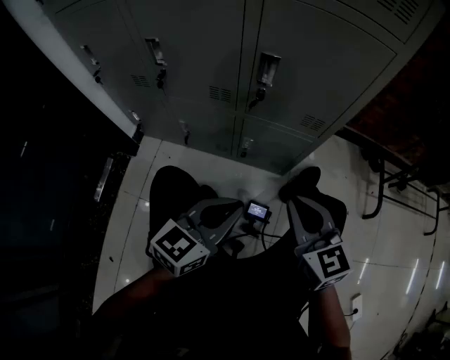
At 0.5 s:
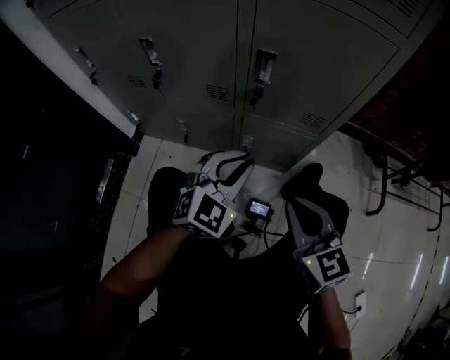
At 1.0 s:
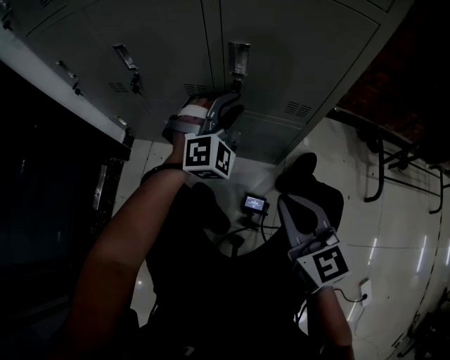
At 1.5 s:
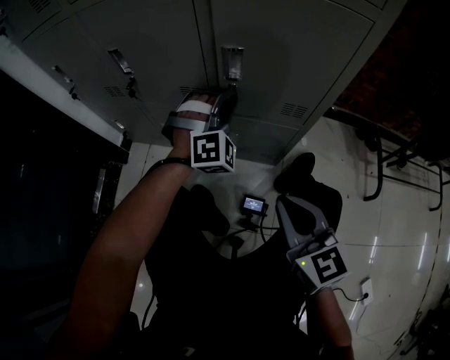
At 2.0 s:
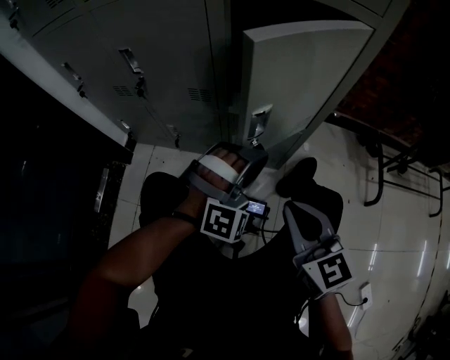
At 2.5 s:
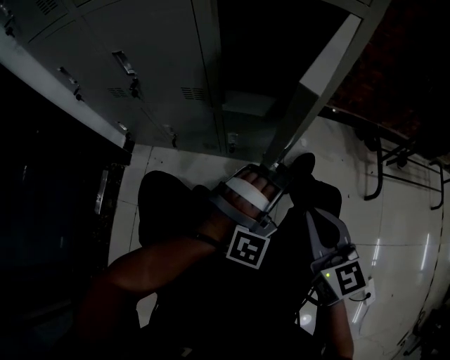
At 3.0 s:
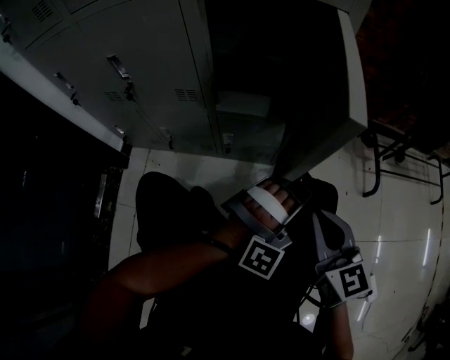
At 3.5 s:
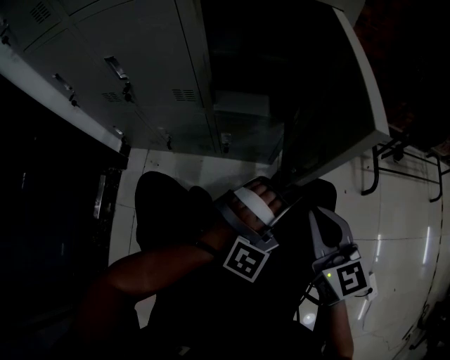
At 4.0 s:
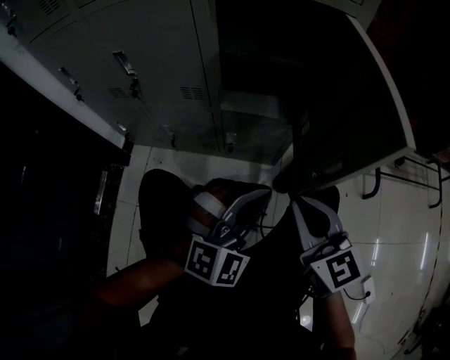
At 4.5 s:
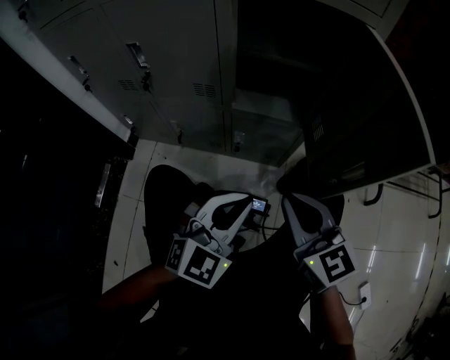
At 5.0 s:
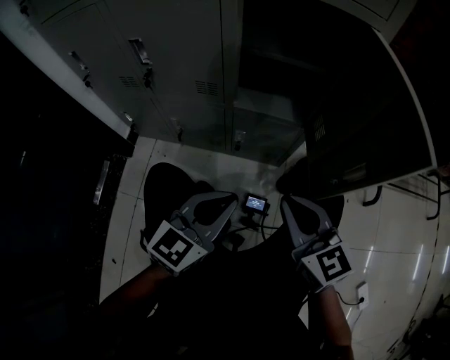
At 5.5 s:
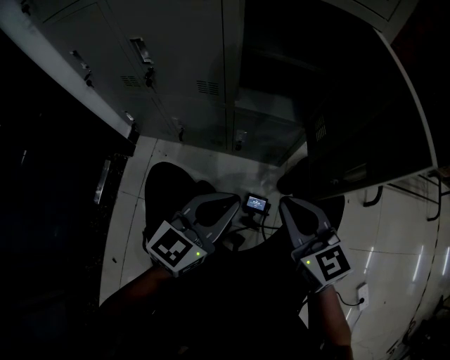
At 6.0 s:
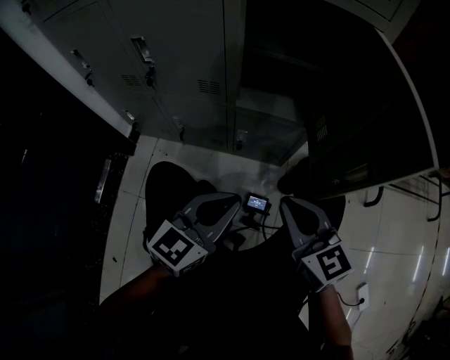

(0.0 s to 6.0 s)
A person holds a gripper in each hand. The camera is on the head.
0.0 s - 2.0 s: The left gripper shifts some 15 cm forward and to the right, and rotates around the line of its fingers by approximately 90 degrees, clockwise from behind.
2.0 s - 4.0 s: The right gripper reaches approximately 10 cm to the right, then returns. Meanwhile the left gripper travels backward by roughly 10 cm, reaches some 15 cm to the right, then returns, and swivels some 20 degrees.
4.0 s - 6.0 s: The right gripper shifts by roughly 5 cm. The left gripper is displaced to the left by about 10 cm, and twists approximately 60 degrees counterclockwise, seen from behind.

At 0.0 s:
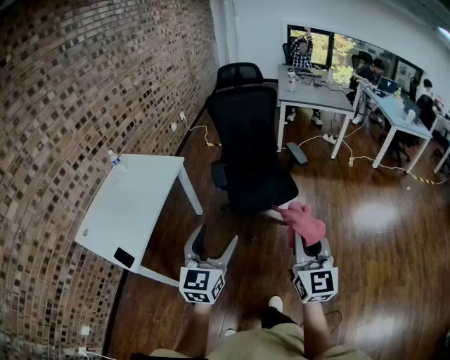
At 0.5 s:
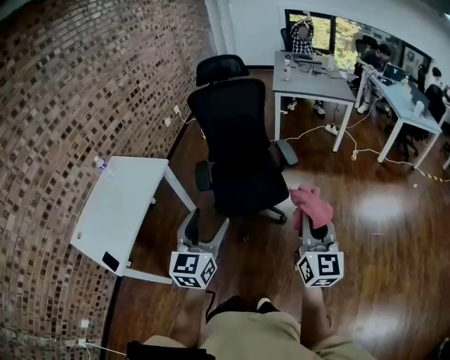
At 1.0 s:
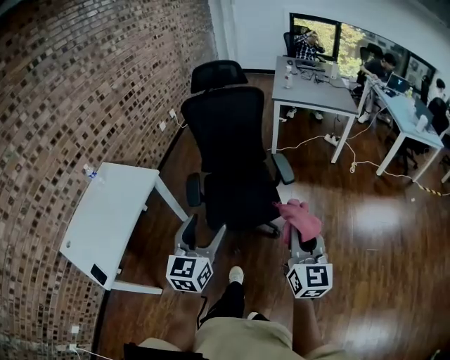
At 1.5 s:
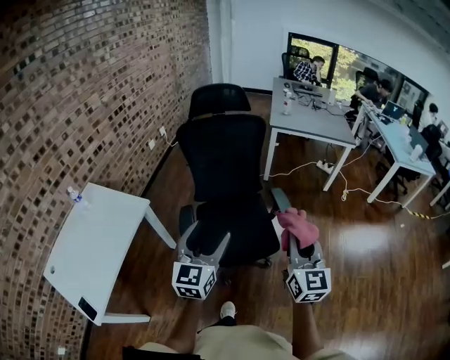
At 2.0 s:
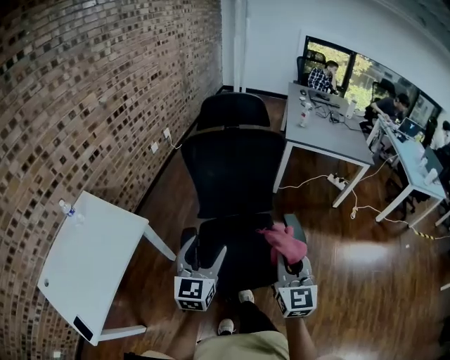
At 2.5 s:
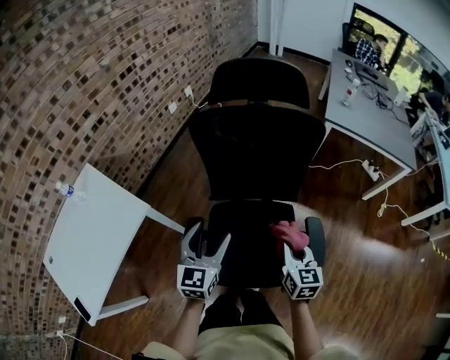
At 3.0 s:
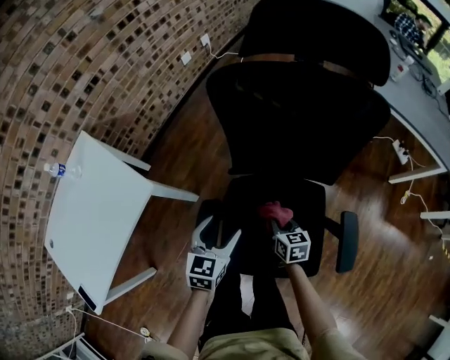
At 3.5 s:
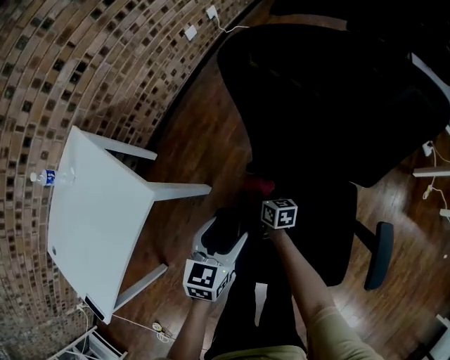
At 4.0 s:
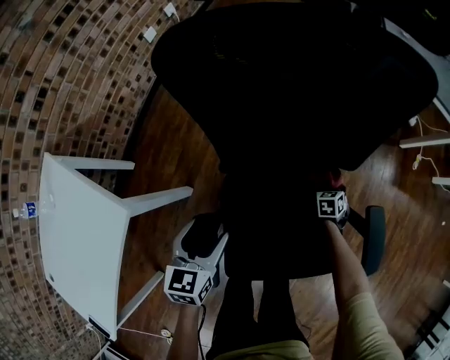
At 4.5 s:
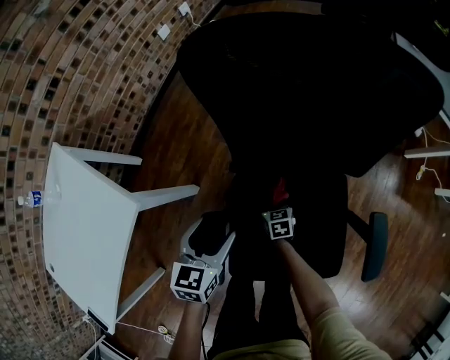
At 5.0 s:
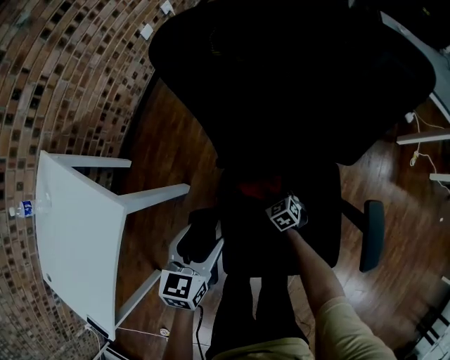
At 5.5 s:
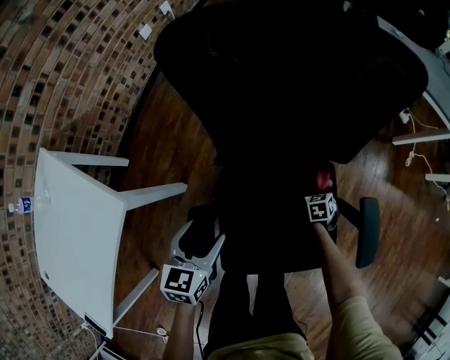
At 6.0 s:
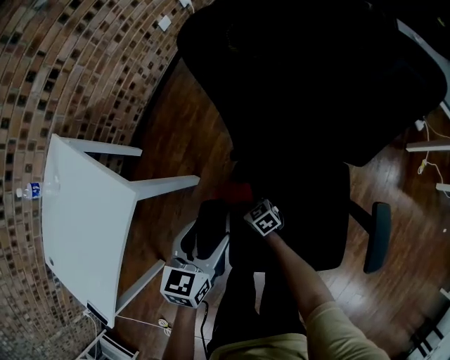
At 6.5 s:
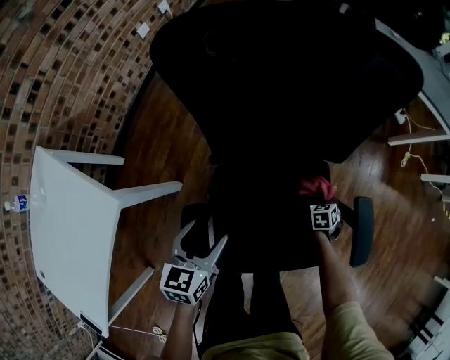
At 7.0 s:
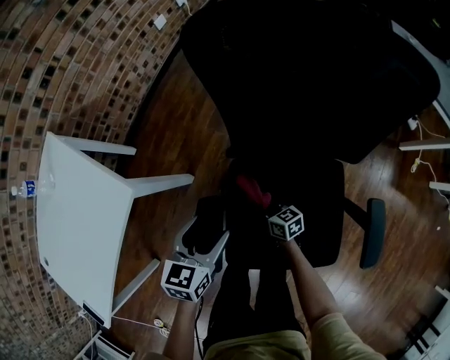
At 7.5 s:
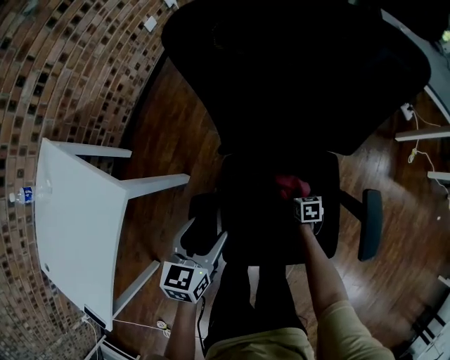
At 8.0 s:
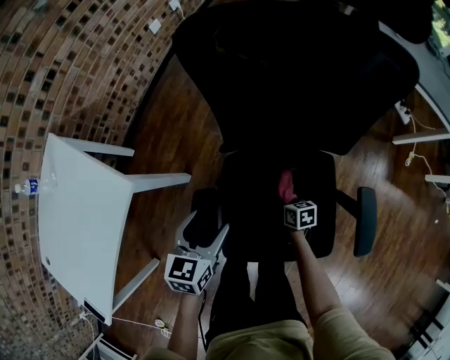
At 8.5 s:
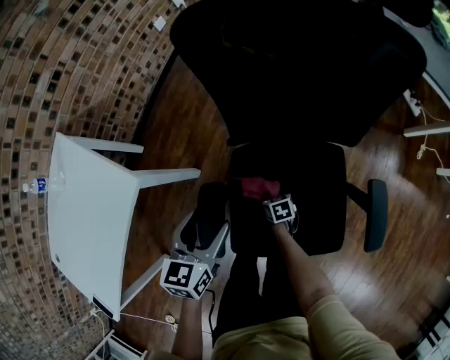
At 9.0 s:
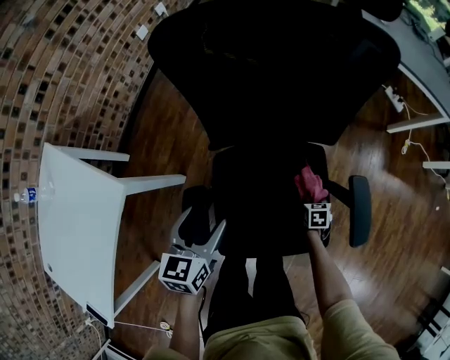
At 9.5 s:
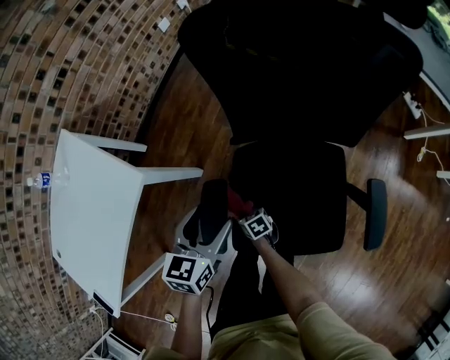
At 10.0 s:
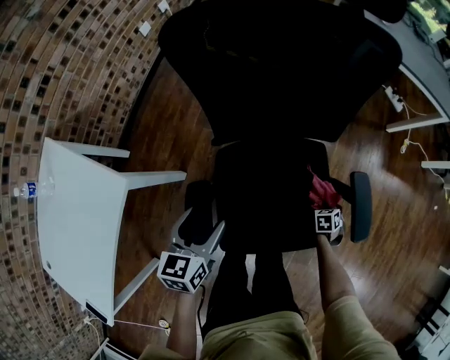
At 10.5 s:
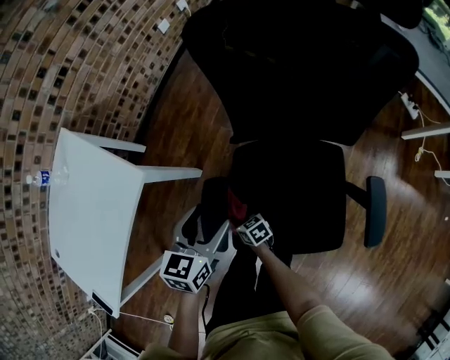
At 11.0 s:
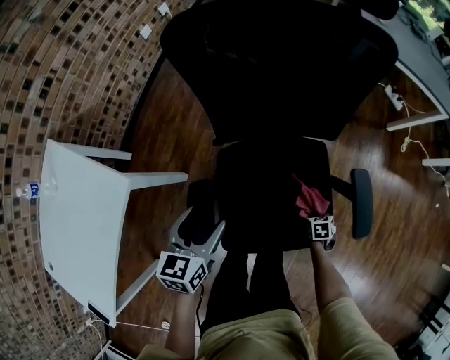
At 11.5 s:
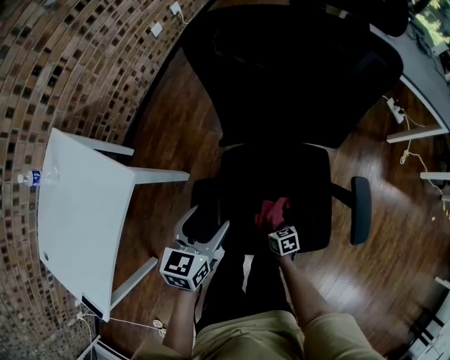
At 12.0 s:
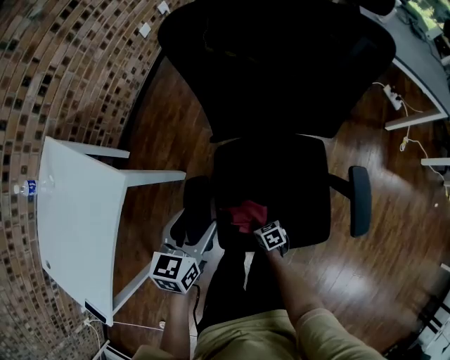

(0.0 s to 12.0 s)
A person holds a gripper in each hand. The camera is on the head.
0.0 s - 2.0 s: The pair of grippers is taken forward, approximately 50 cm.
2.0 s - 4.0 s: The right gripper moves downward, about 60 cm, and angles its fingers downward, by roughly 60 degrees; the left gripper shifts about 35 cm downward, and angles its fingers downward, by about 30 degrees.
4.0 s - 6.0 s: The right gripper shifts by some 40 cm, and turns by about 60 degrees.
6.0 s - 8.0 s: The right gripper moves up and down over roughly 5 cm, changing direction 2 times, and swivels some 40 degrees.
8.0 s - 10.0 s: The right gripper shifts by approximately 25 cm, and swivels approximately 50 degrees.
10.0 s - 12.0 s: The right gripper ends up approximately 30 cm from where it was, and swivels approximately 40 degrees.

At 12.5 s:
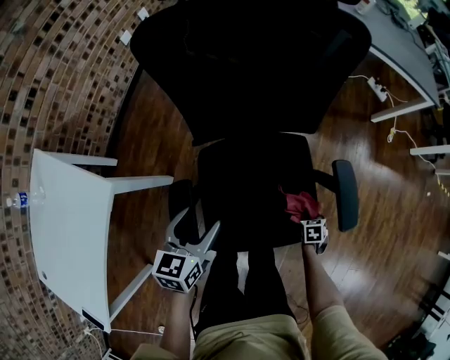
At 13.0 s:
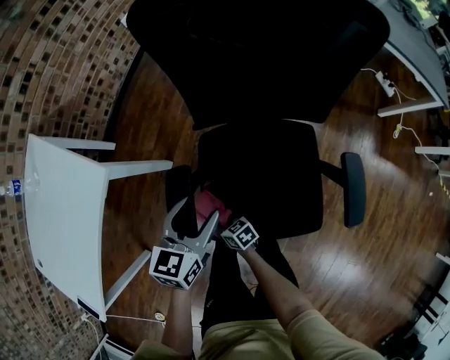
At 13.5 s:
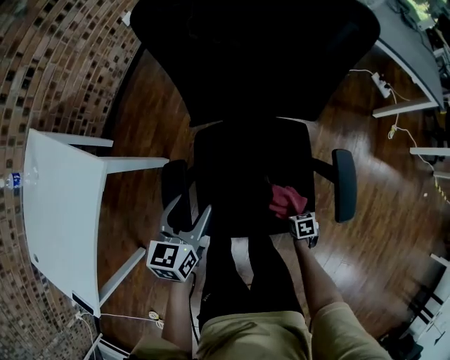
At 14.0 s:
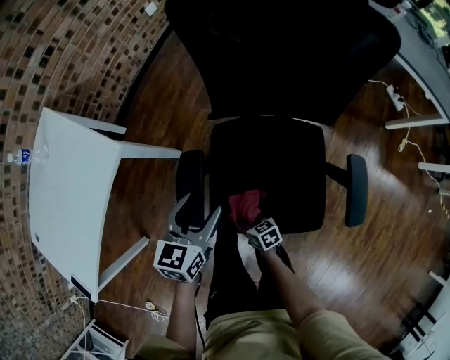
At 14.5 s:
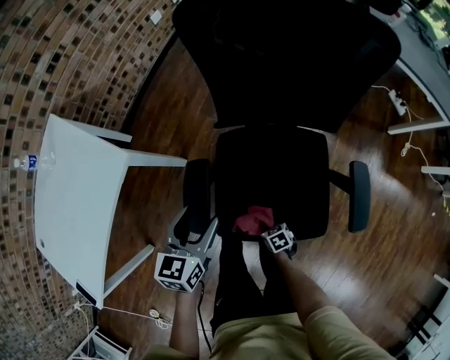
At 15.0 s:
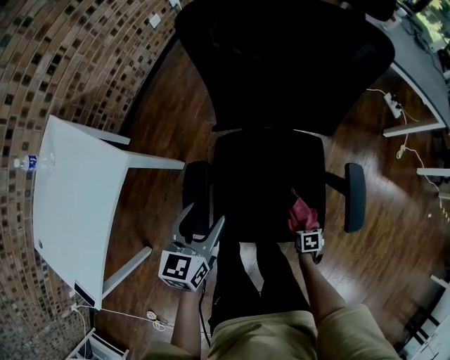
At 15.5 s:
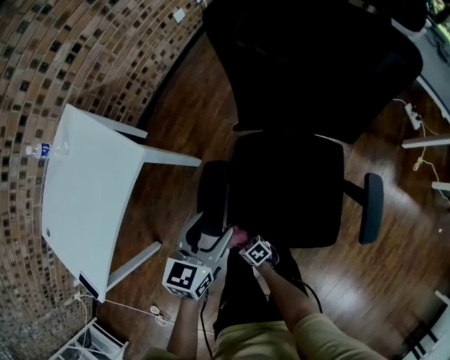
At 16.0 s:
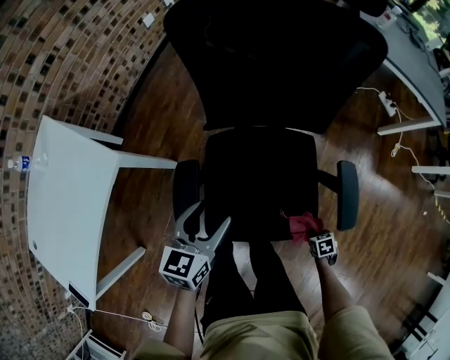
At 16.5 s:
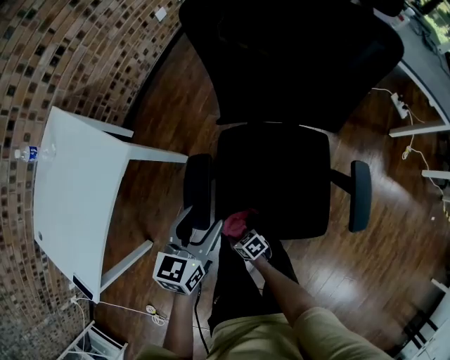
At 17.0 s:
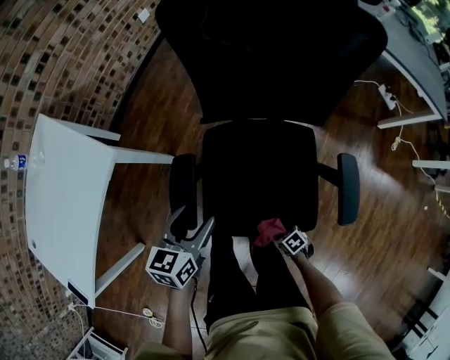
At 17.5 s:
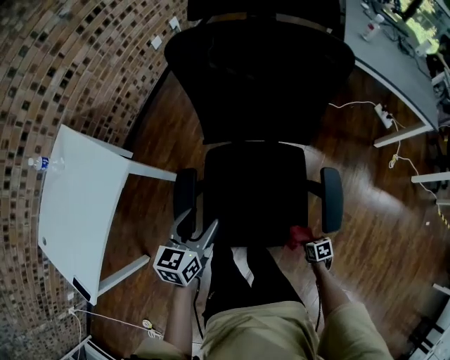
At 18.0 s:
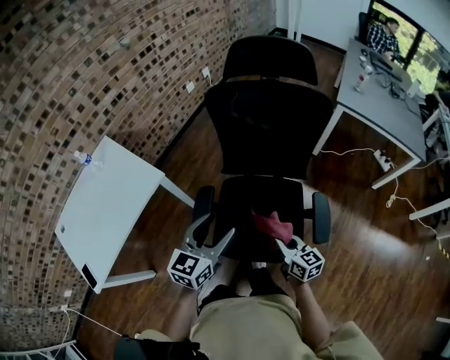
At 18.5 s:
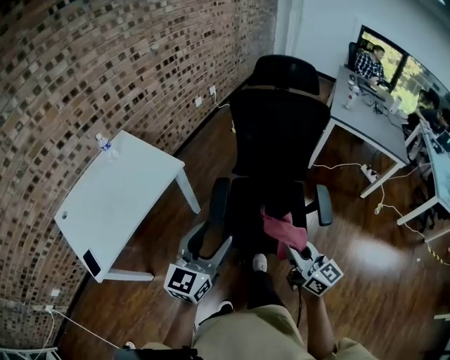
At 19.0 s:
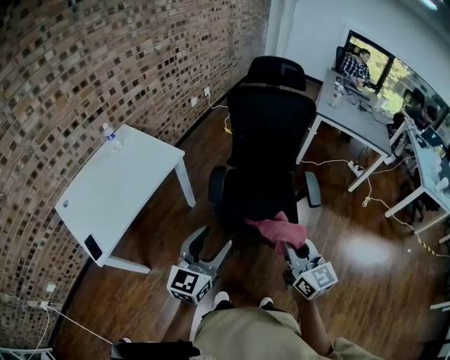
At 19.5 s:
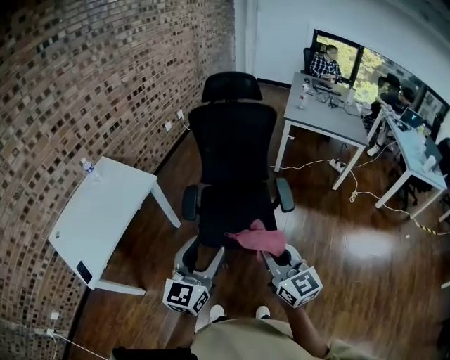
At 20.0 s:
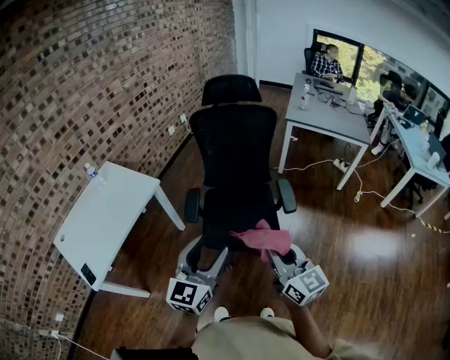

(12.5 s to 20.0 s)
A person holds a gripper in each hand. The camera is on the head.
12.5 s - 14.5 s: The left gripper moves roughly 5 cm. The right gripper changes its angle by about 30 degrees.
14.5 s - 16.5 s: The right gripper changes its angle by roughly 30 degrees.
16.5 s - 18.0 s: The right gripper moves upward, approximately 35 cm, and changes its angle by approximately 50 degrees, while the left gripper is displaced upward by roughly 20 cm.
18.0 s - 20.0 s: Both grippers travel together backward and upward, about 35 cm. The right gripper changes its angle by approximately 30 degrees.

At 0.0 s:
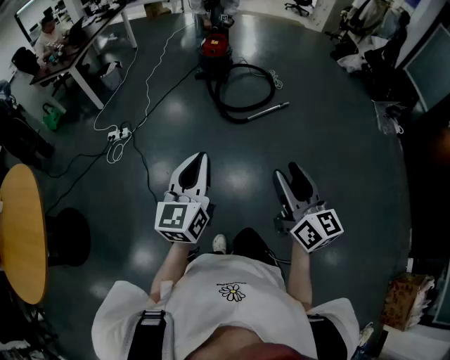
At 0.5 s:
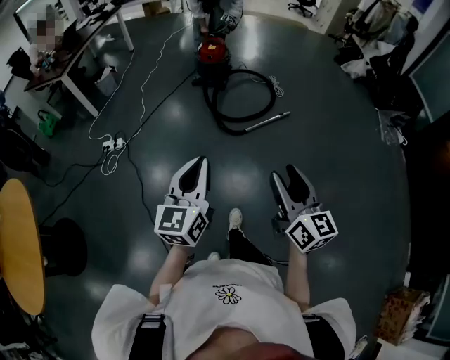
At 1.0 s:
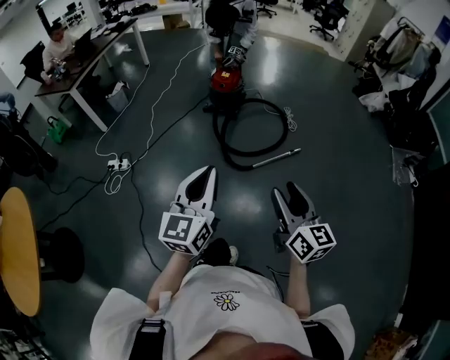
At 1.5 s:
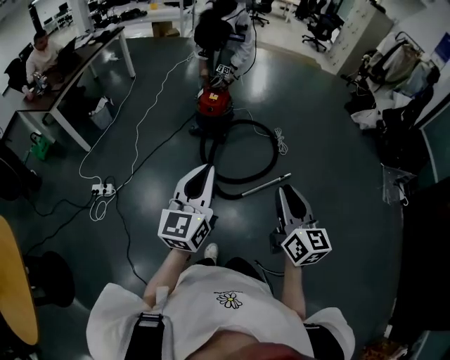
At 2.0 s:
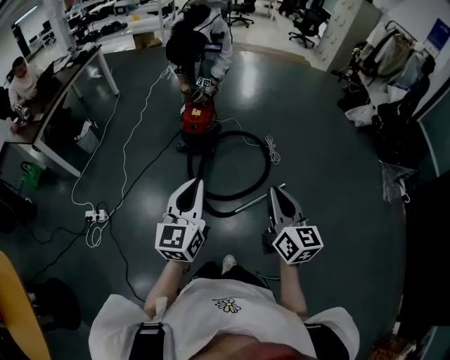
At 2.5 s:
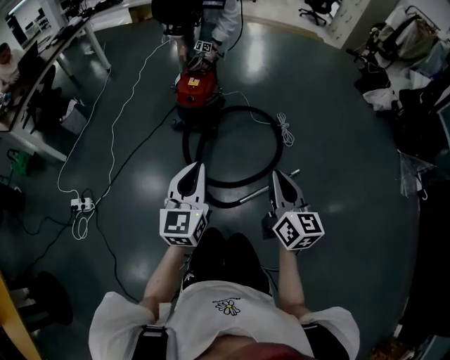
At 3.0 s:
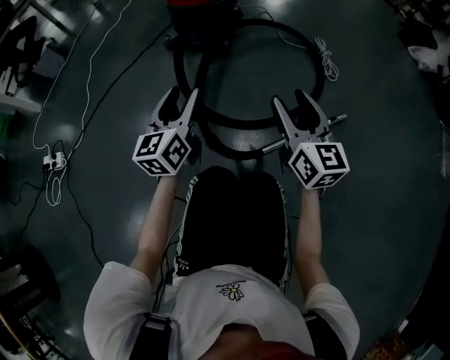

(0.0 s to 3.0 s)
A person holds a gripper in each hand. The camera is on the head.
0.0 s - 1.5 s: The pair of grippers is taken forward, about 50 cm. The right gripper closes its fingers.
1.5 s - 3.0 s: The two grippers go some 70 cm downward and forward. The right gripper opens its fingers. The left gripper opens up.
